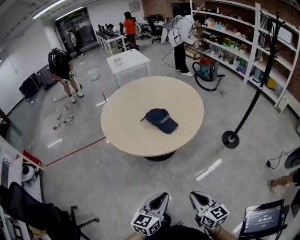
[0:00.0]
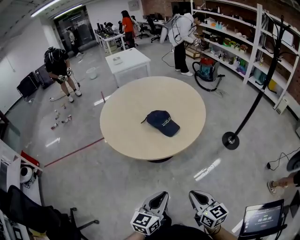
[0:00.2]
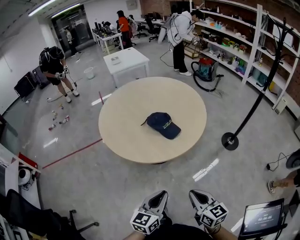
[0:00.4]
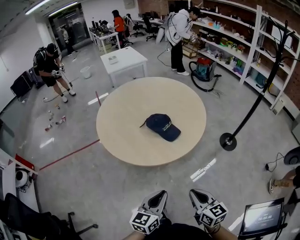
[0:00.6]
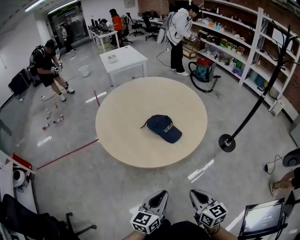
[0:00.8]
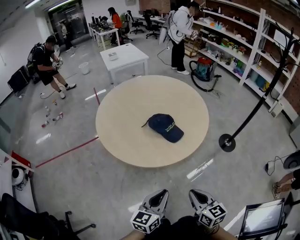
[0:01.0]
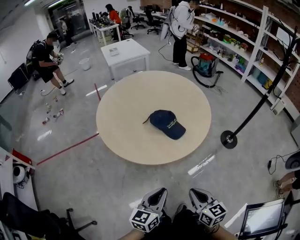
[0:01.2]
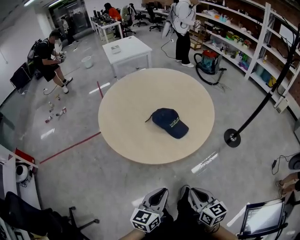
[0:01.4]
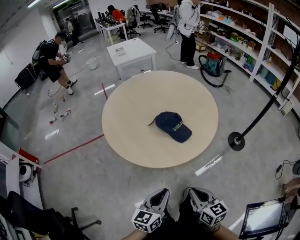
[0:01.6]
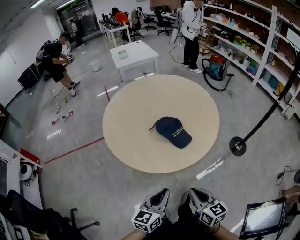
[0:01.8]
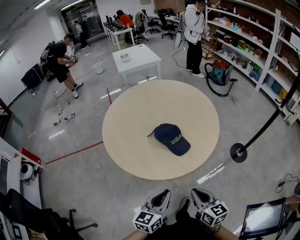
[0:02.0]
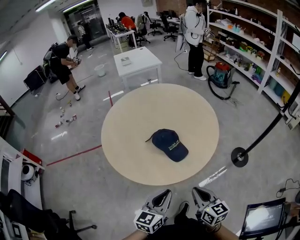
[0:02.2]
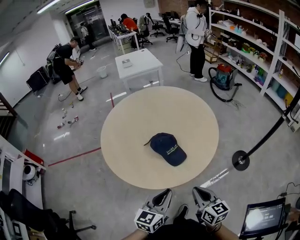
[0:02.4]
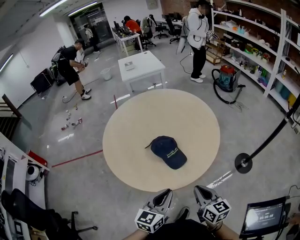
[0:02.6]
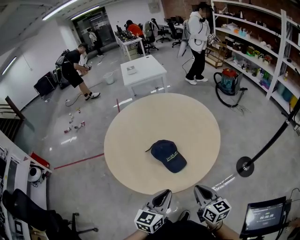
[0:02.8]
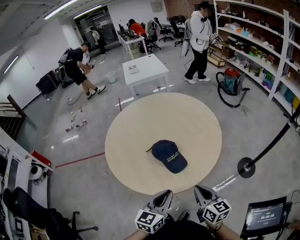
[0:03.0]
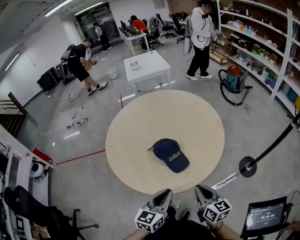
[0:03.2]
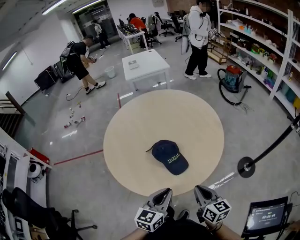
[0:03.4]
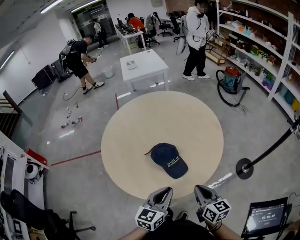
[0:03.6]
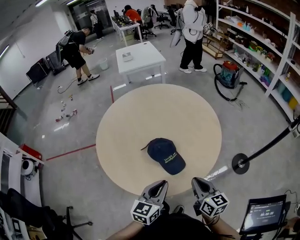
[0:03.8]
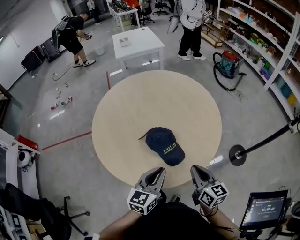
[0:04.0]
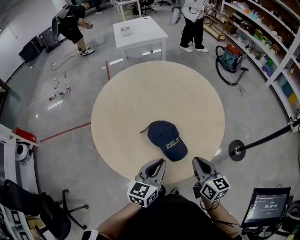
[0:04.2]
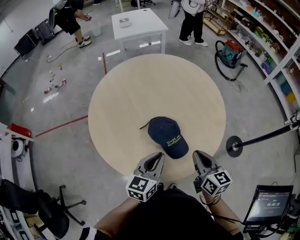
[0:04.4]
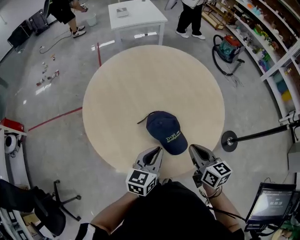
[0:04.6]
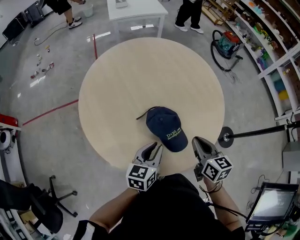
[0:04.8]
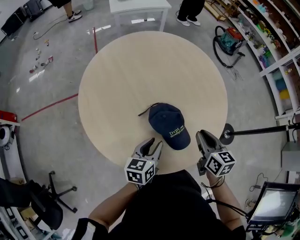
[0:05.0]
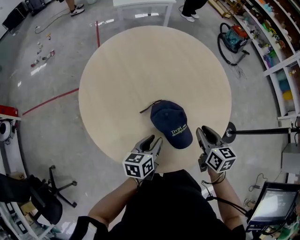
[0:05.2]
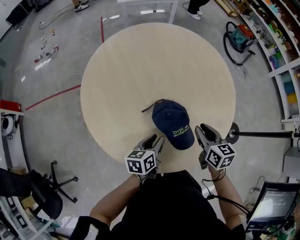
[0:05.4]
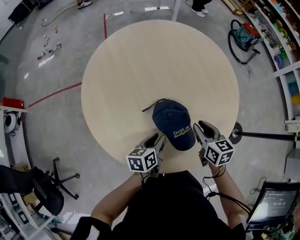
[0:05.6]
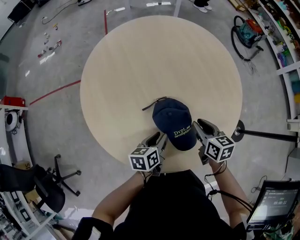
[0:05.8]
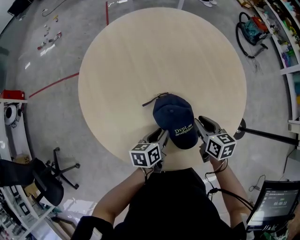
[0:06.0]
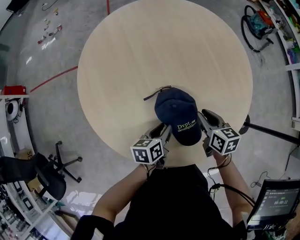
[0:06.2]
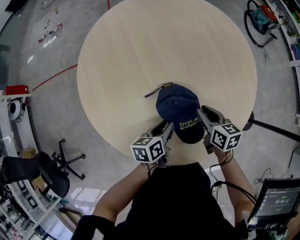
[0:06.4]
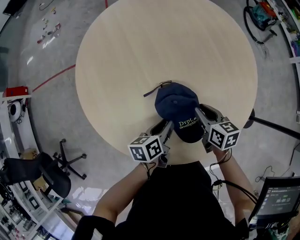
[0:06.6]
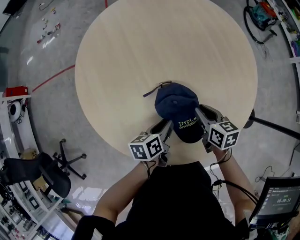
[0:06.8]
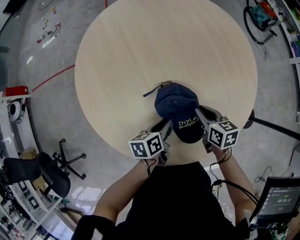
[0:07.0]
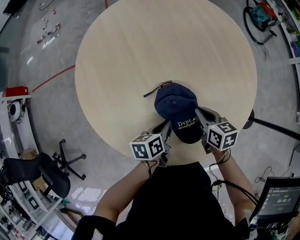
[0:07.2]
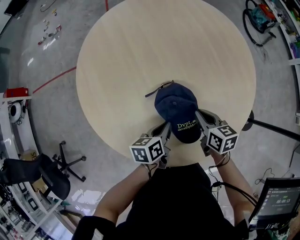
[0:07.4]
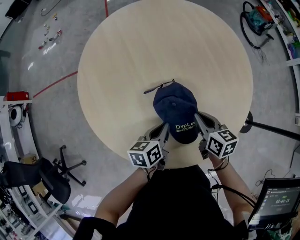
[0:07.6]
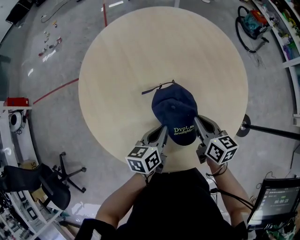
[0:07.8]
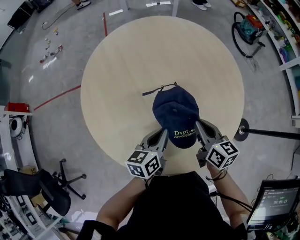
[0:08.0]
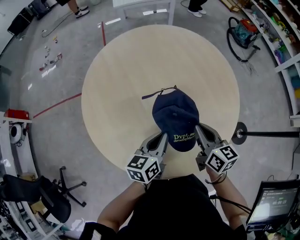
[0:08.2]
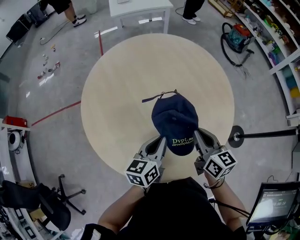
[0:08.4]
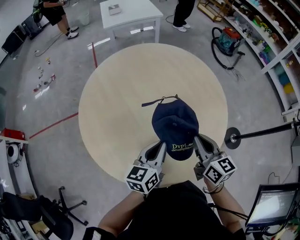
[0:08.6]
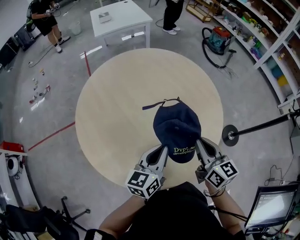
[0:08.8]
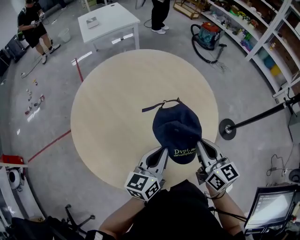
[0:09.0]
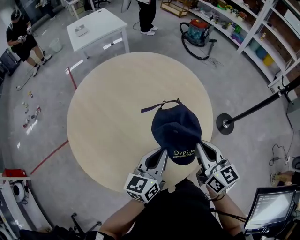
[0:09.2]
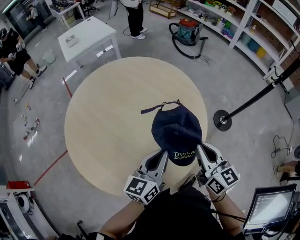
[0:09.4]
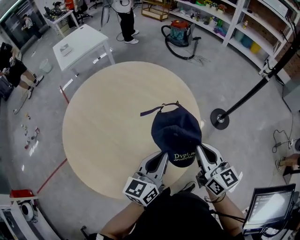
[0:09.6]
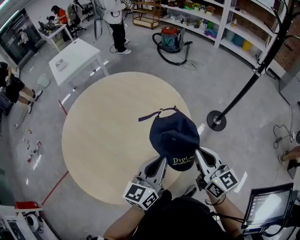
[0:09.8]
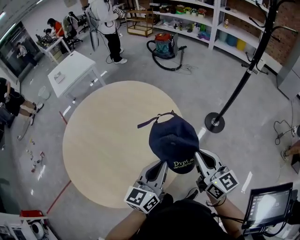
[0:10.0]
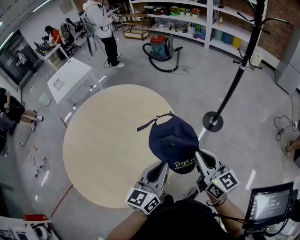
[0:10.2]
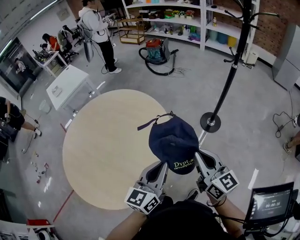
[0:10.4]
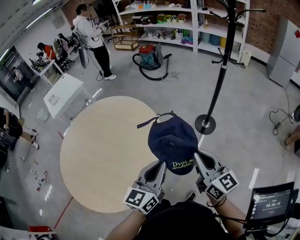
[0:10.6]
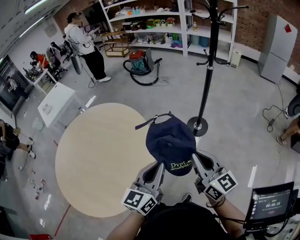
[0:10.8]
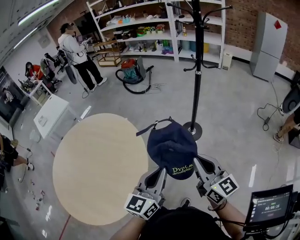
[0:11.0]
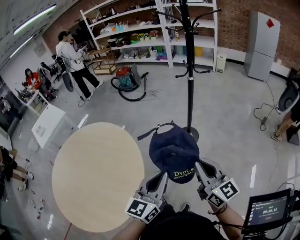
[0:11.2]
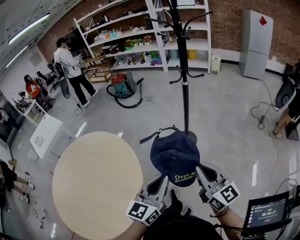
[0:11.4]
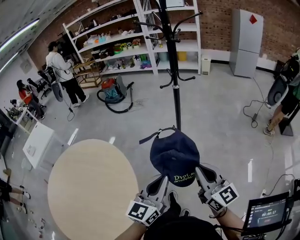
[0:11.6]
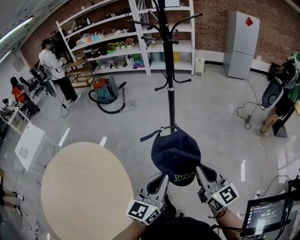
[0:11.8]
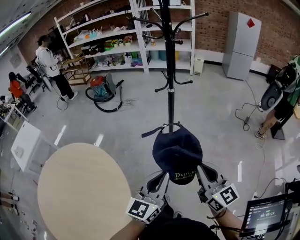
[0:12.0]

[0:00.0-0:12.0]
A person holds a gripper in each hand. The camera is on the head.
0.0 to 1.6 s: Both grippers travel together forward and to the left, some 15 cm.
1.6 to 3.0 s: The grippers both shift forward and to the right by about 20 cm.
3.0 to 4.4 s: The right gripper goes about 15 cm forward; the left gripper is displaced forward and to the left by roughly 20 cm.
4.4 to 6.0 s: The right gripper is displaced forward and downward by about 20 cm, and turns by some 30 degrees; the left gripper goes roughly 20 cm downward and forward, swivels about 40 degrees, and opens up.
6.0 to 7.6 s: The left gripper closes.
7.6 to 9.0 s: The two grippers go about 20 cm upward. The right gripper swivels roughly 30 degrees, while the left gripper turns by some 40 degrees.
9.0 to 10.4 s: Both grippers travel together to the right, about 25 cm. The left gripper turns by approximately 30 degrees, while the right gripper turns by some 30 degrees.
10.4 to 12.0 s: The left gripper moves to the right and forward, approximately 30 cm, and rotates roughly 30 degrees, while the right gripper heads to the right, covering some 25 cm, and changes its angle by approximately 30 degrees.

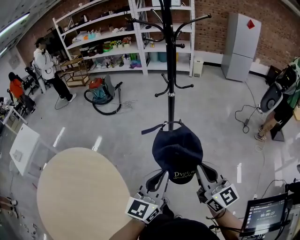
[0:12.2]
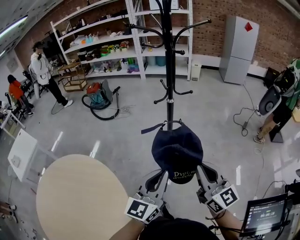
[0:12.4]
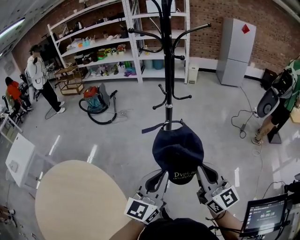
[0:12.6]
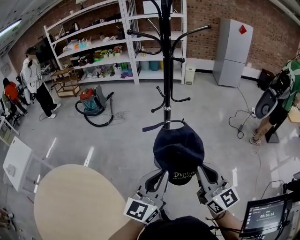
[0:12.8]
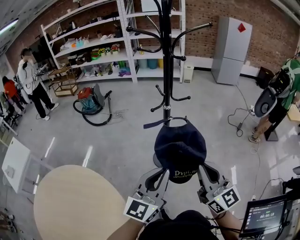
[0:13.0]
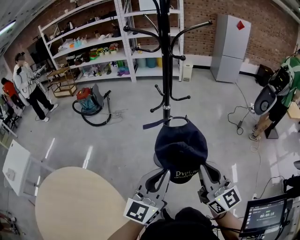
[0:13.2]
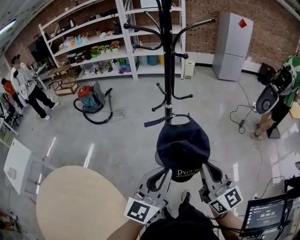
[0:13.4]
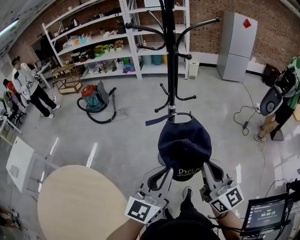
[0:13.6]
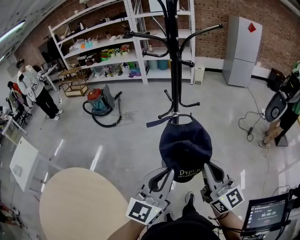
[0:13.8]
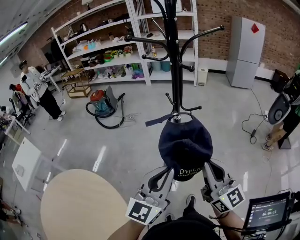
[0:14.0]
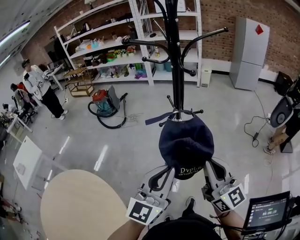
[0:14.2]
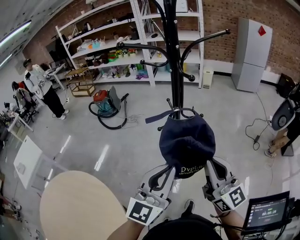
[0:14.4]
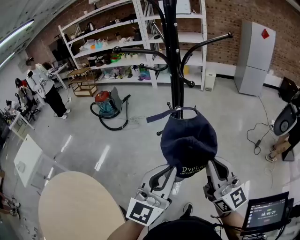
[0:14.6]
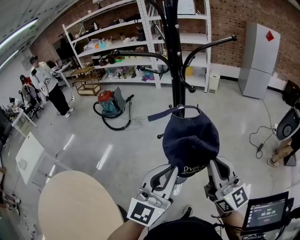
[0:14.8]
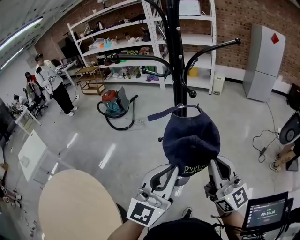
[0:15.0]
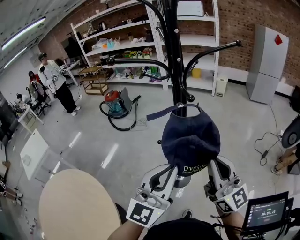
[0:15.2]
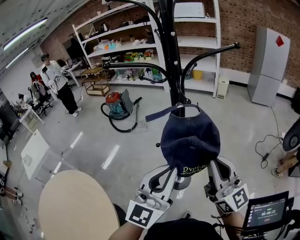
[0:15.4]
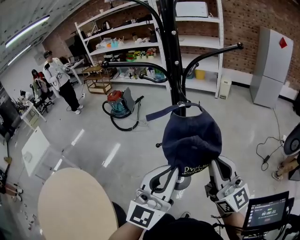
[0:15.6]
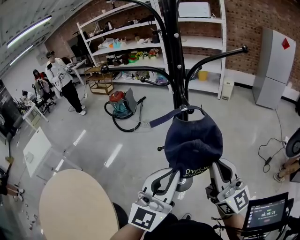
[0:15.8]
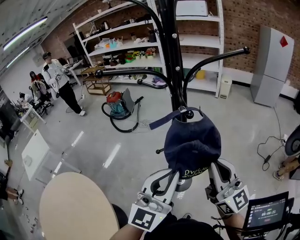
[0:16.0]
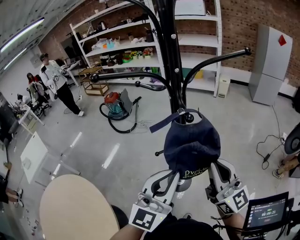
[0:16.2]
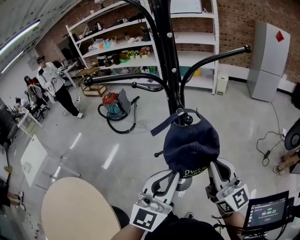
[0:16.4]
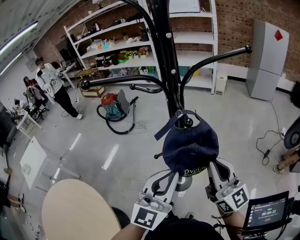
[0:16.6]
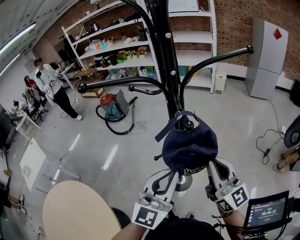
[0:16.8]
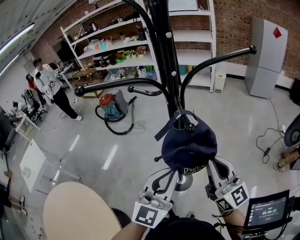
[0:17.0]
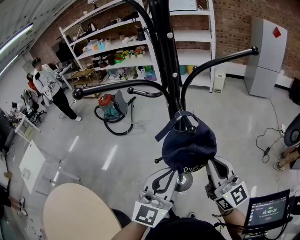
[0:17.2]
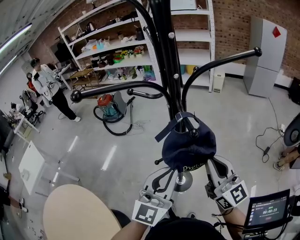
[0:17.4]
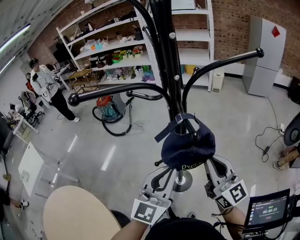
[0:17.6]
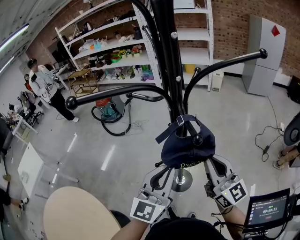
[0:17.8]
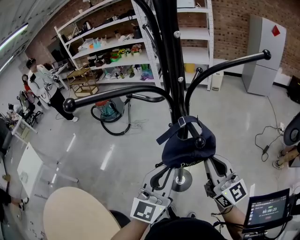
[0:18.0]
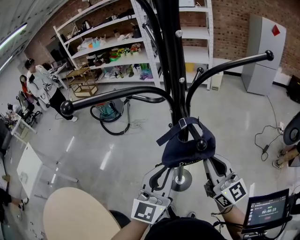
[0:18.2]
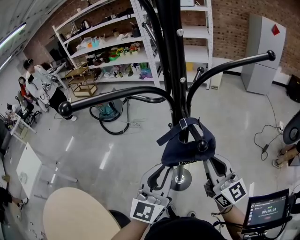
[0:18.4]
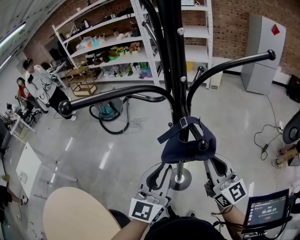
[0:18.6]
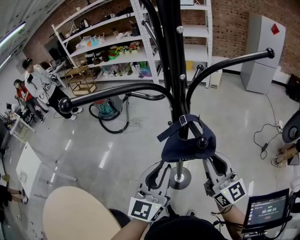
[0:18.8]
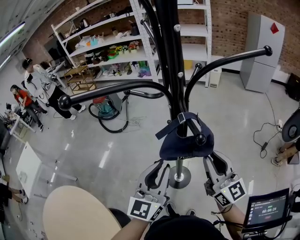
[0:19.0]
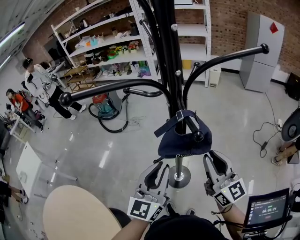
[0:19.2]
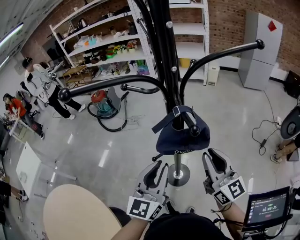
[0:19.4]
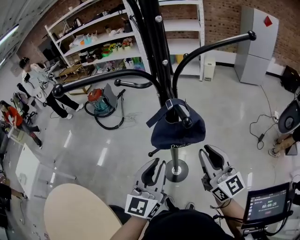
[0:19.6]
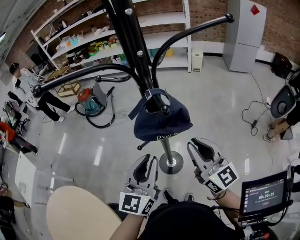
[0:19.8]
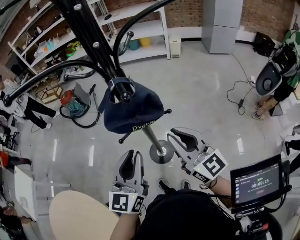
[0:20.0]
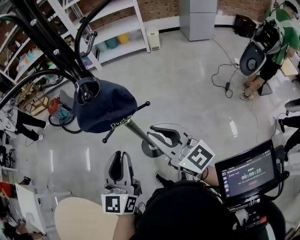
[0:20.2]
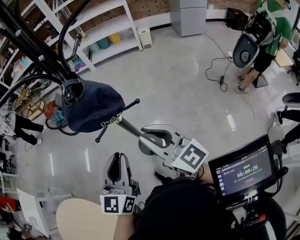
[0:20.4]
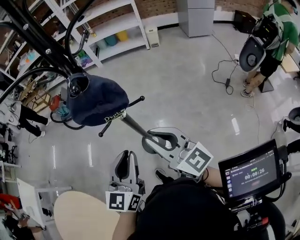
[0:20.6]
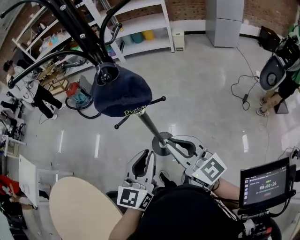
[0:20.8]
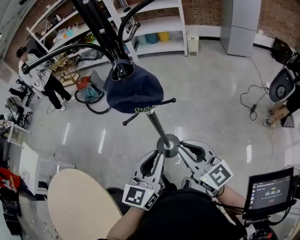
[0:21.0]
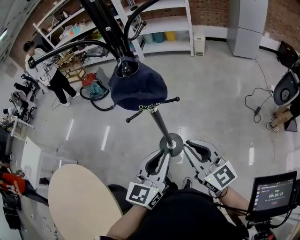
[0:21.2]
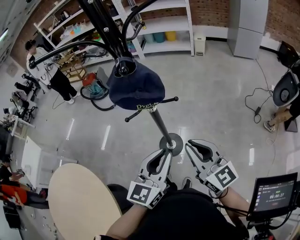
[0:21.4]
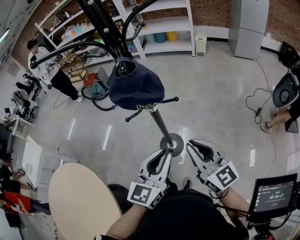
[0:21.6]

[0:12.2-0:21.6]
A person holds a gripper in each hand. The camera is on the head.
12.2 to 13.8 s: The left gripper is displaced forward and upward by approximately 15 cm. The right gripper moves forward, approximately 10 cm.
13.8 to 15.4 s: Both grippers move forward and to the right, approximately 15 cm.
15.4 to 17.0 s: Both grippers travel together forward, roughly 10 cm.
17.0 to 18.4 s: The two grippers go about 10 cm forward.
18.4 to 20.0 s: The two grippers go some 5 cm backward.
20.0 to 21.6 s: The right gripper goes some 15 cm backward and to the right; the left gripper is displaced to the right and backward by roughly 15 cm.

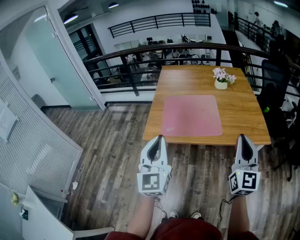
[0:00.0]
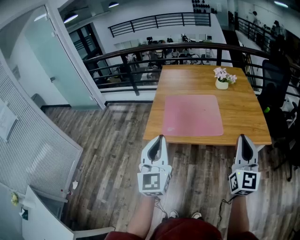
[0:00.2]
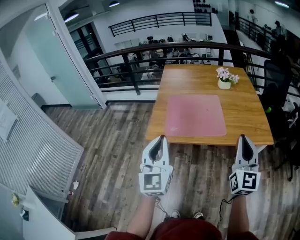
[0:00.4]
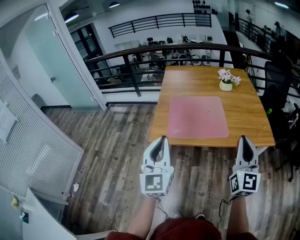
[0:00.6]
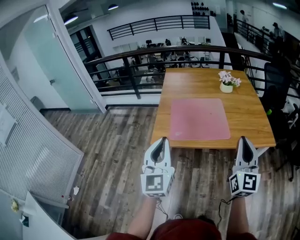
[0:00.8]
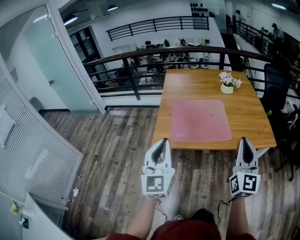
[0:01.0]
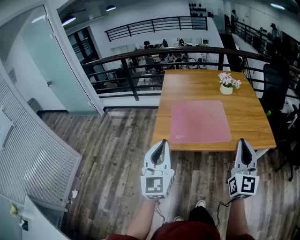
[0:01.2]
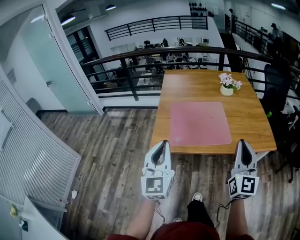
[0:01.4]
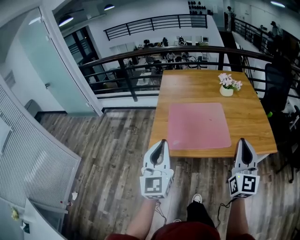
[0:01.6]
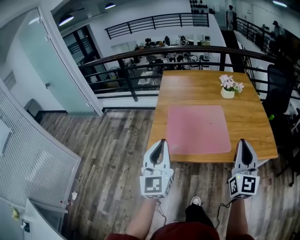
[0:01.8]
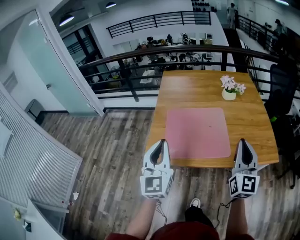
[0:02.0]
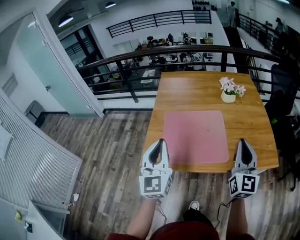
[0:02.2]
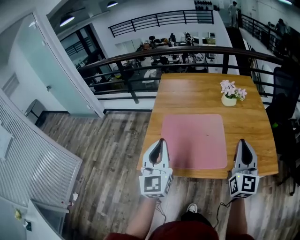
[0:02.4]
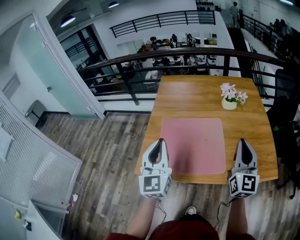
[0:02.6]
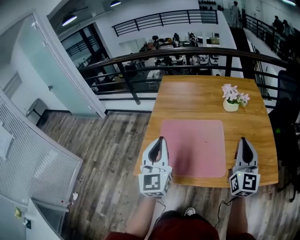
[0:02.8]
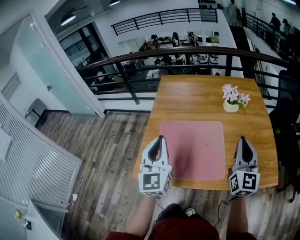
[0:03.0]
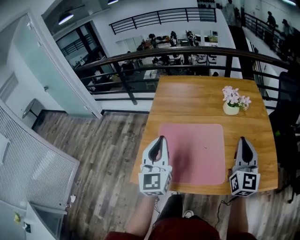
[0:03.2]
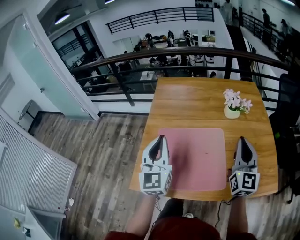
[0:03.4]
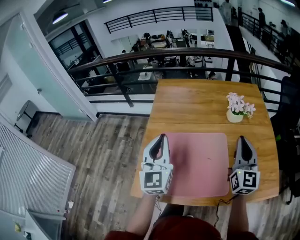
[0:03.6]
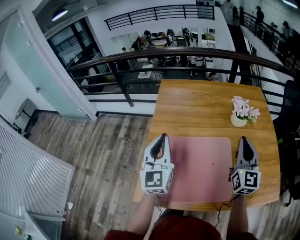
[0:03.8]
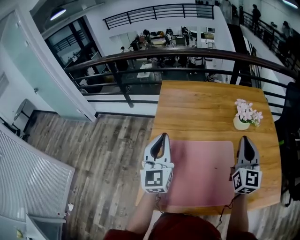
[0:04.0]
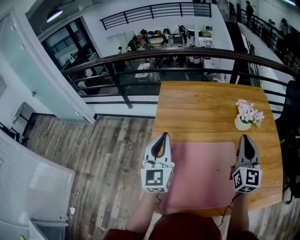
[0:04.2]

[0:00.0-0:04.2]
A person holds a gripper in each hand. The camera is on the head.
0.0 to 1.4 s: The grippers both shift to the left and forward by roughly 10 cm.
1.4 to 2.8 s: Both grippers move forward and to the right, approximately 30 cm.
2.8 to 4.2 s: The left gripper travels forward by approximately 30 cm. Meanwhile the right gripper is displaced forward and to the left by approximately 30 cm.
